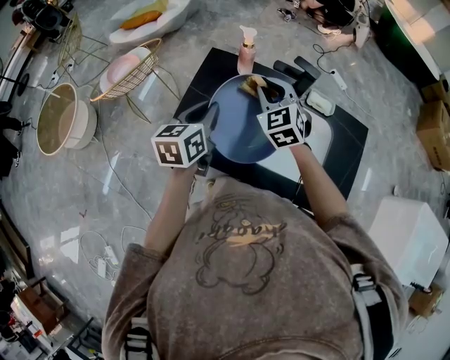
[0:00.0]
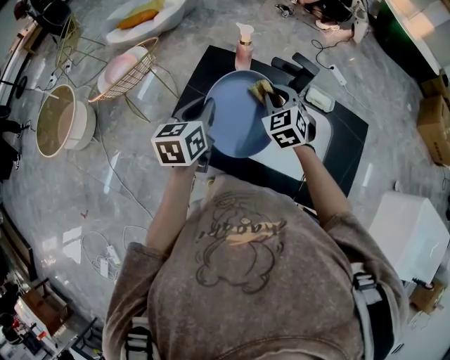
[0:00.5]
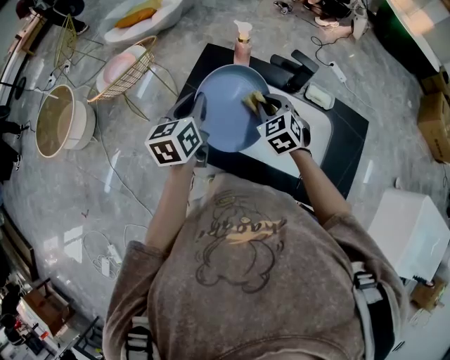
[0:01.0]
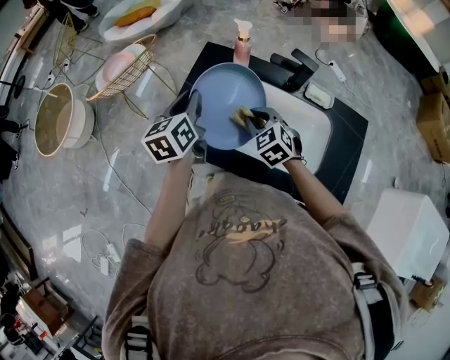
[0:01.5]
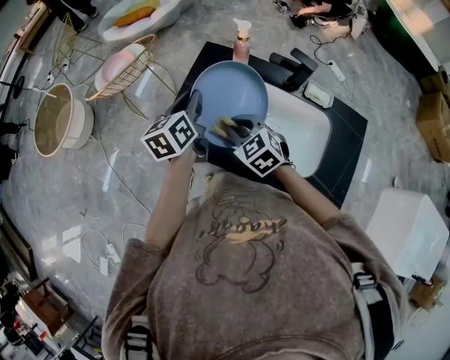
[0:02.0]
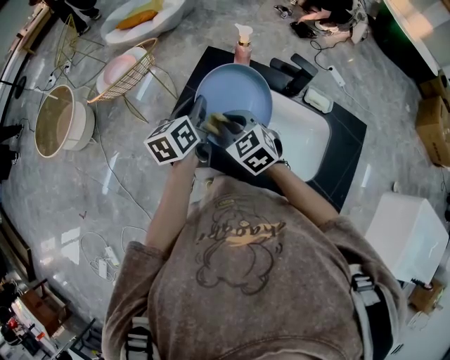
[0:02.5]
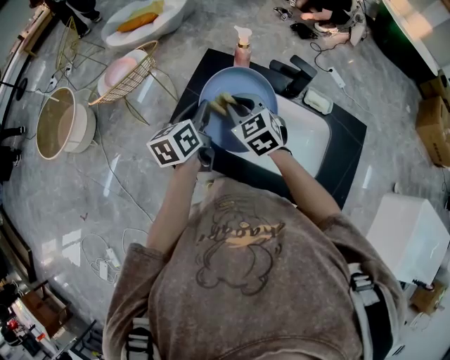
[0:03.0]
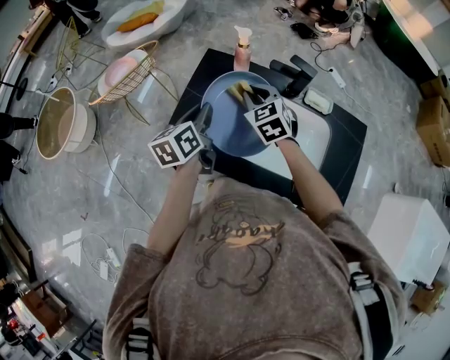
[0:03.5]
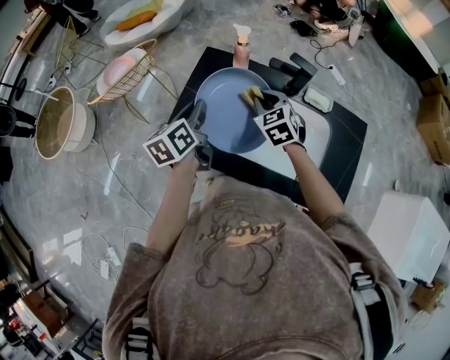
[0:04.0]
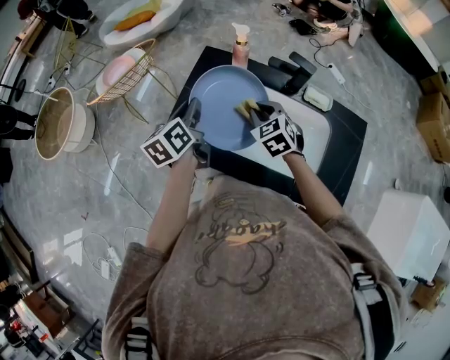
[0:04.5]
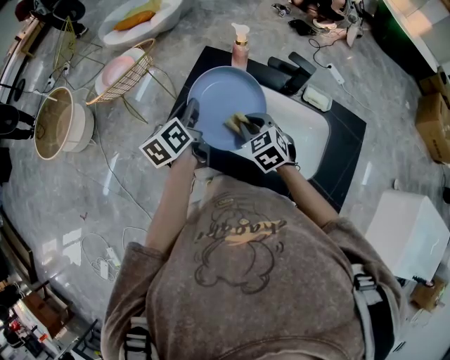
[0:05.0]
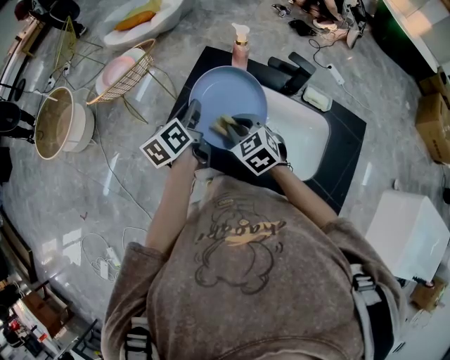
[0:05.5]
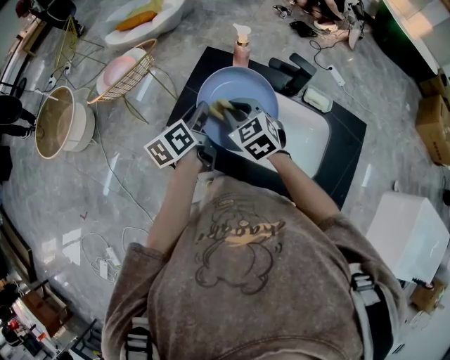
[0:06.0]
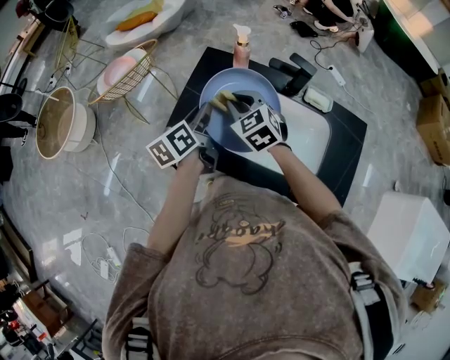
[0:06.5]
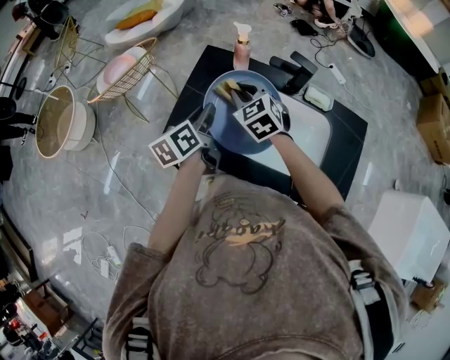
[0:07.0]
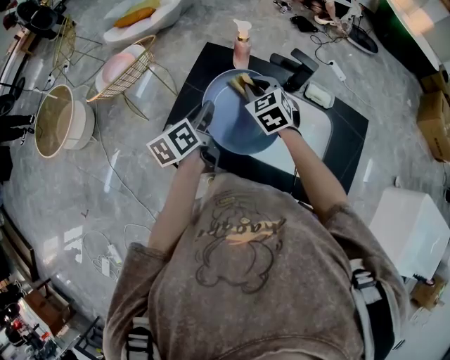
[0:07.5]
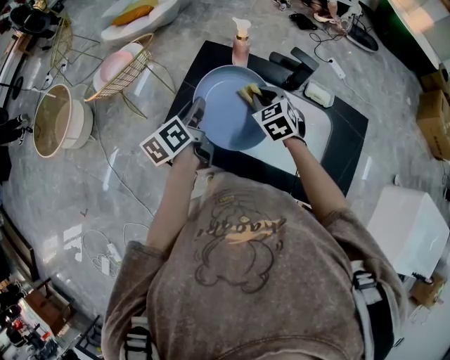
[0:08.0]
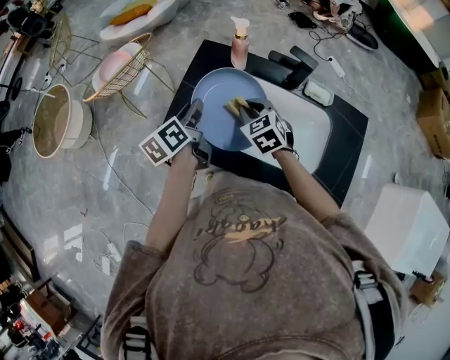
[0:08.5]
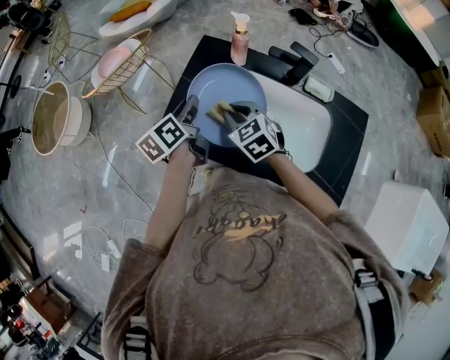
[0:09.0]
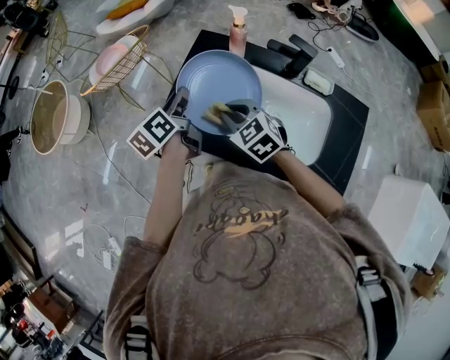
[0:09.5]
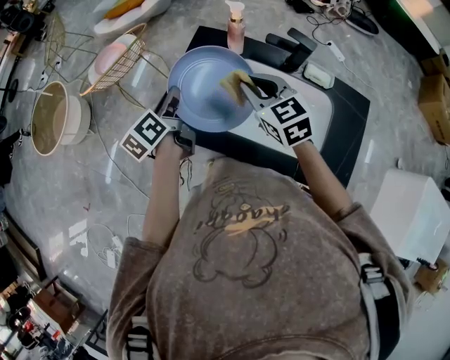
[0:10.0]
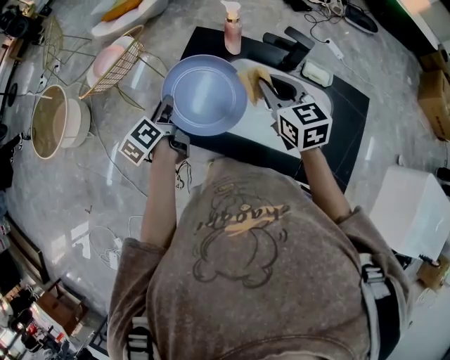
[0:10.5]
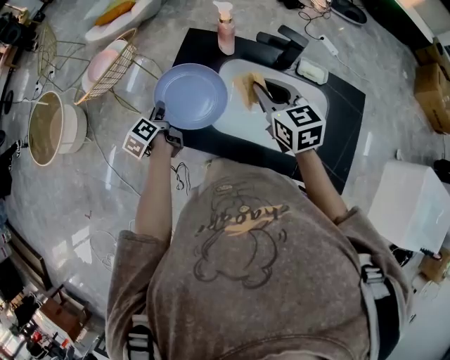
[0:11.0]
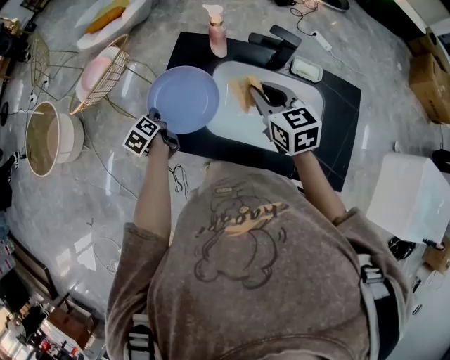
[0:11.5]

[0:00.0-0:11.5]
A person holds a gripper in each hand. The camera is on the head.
0:00.0 to 0:02.0: The left gripper moves some 5 cm, while the right gripper is displaced backward, downward and to the left by roughly 15 cm, and swivels approximately 30 degrees.
0:02.0 to 0:04.0: The right gripper shifts about 15 cm to the right and forward.
0:04.0 to 0:06.0: The right gripper is displaced to the left by roughly 10 cm.
0:06.0 to 0:07.5: The right gripper is displaced forward and to the right by about 10 cm.
0:07.5 to 0:09.5: The left gripper travels to the left by approximately 5 cm, while the right gripper shifts roughly 15 cm backward and to the left.
0:09.5 to 0:11.5: The right gripper shifts approximately 15 cm to the right and upward, and swivels roughly 30 degrees. Meanwhile the left gripper goes roughly 20 cm downward and to the left, and swivels roughly 20 degrees.

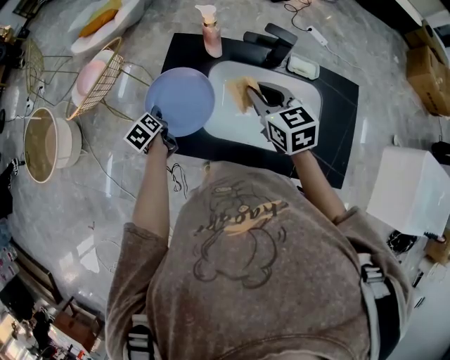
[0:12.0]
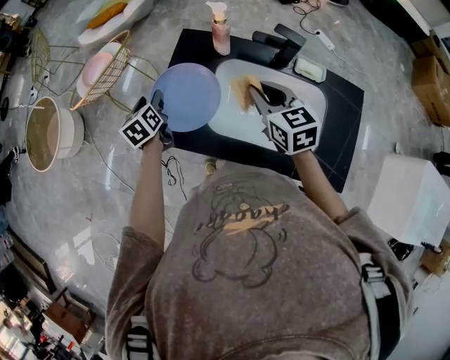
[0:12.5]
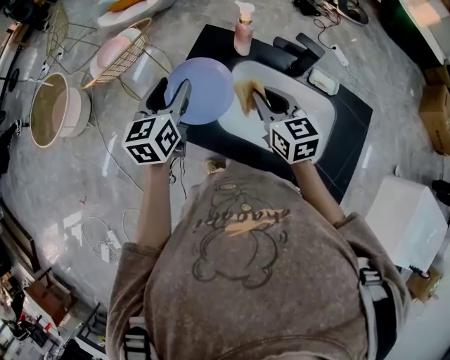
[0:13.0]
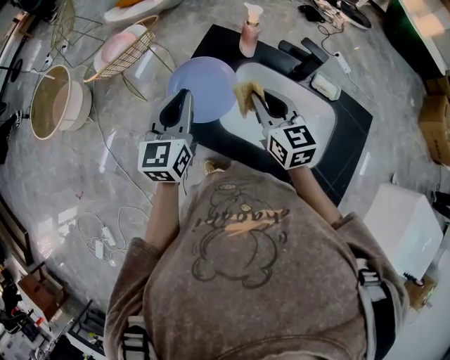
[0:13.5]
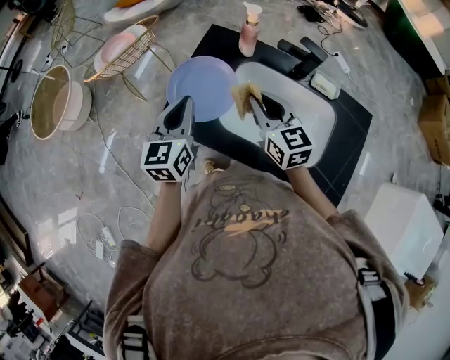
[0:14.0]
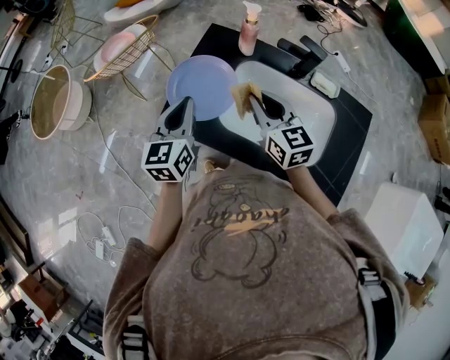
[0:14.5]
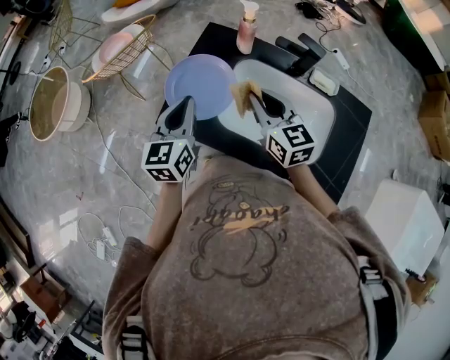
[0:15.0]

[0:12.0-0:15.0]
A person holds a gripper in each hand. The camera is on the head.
0:12.0 to 0:13.5: The right gripper is displaced to the left by about 5 cm. Meanwhile the left gripper moves upward and backward, some 25 cm, tilts its fingers roughly 30 degrees upward, and closes.
0:13.5 to 0:15.0: The grippers move only a little.

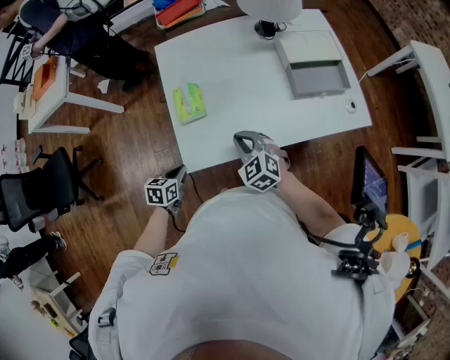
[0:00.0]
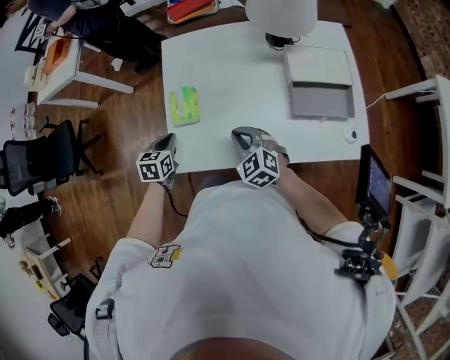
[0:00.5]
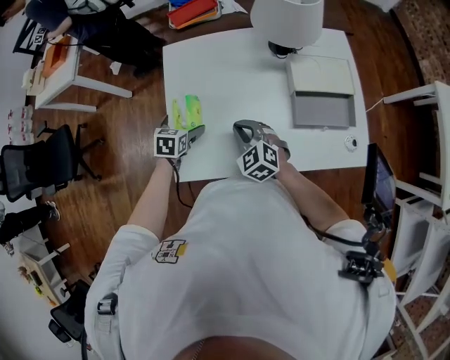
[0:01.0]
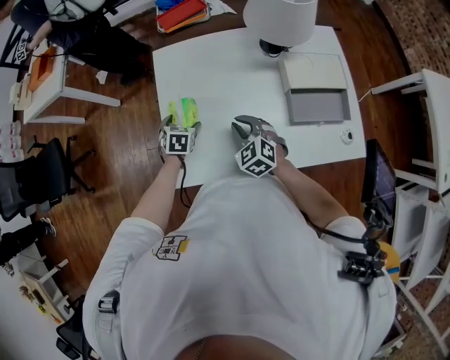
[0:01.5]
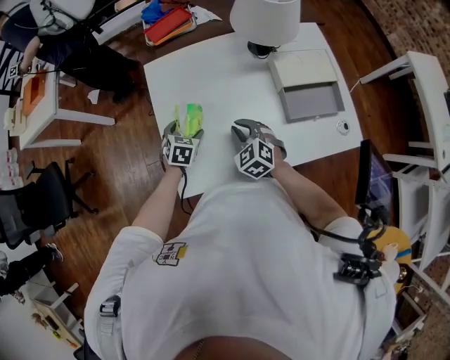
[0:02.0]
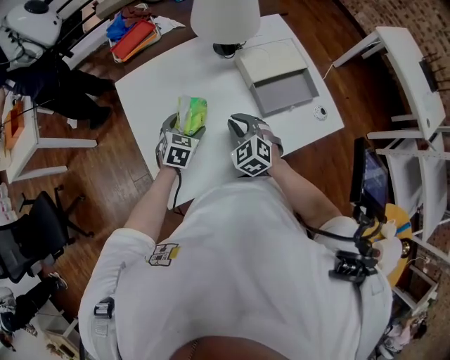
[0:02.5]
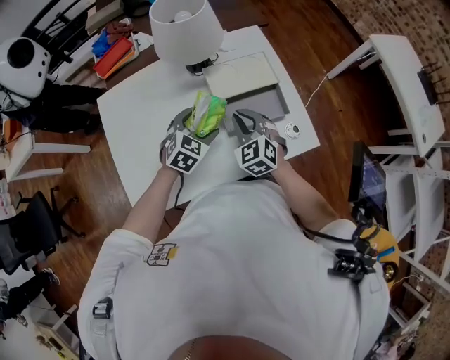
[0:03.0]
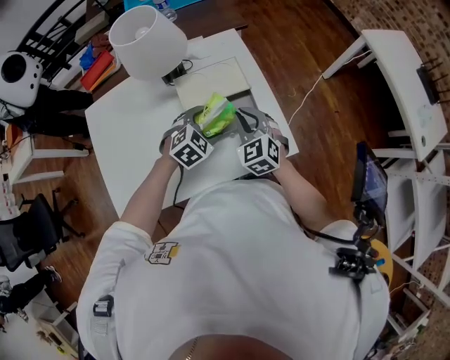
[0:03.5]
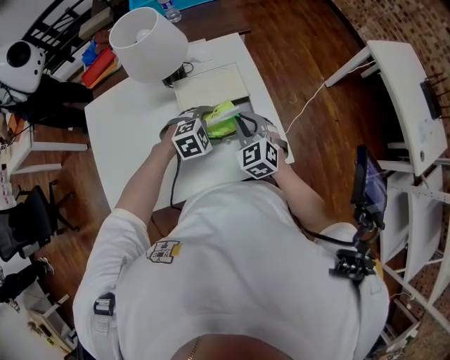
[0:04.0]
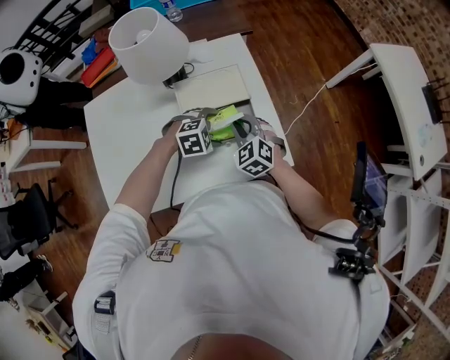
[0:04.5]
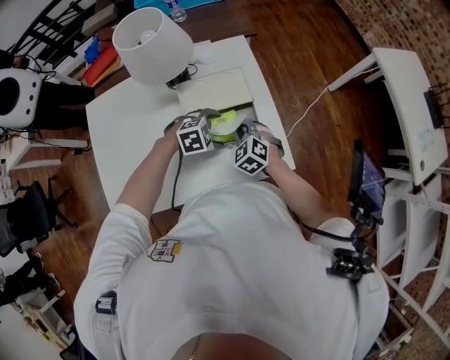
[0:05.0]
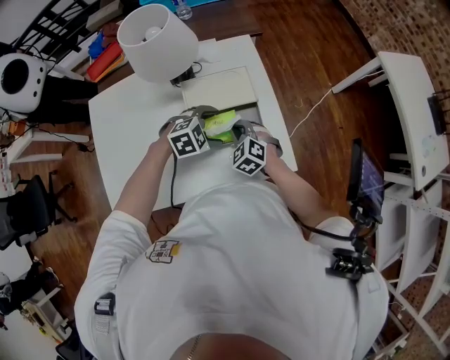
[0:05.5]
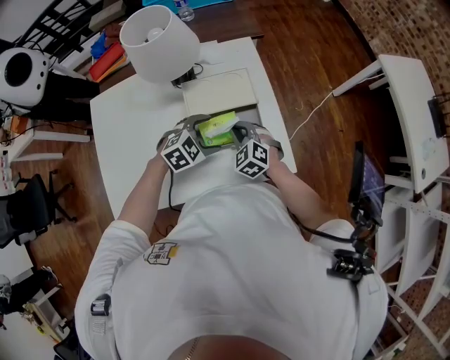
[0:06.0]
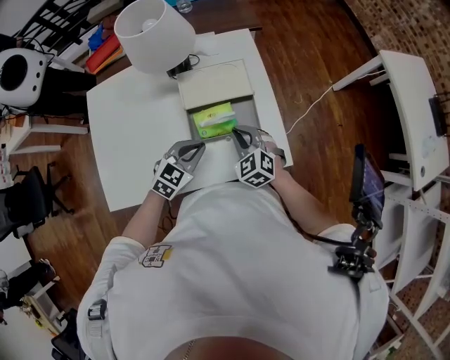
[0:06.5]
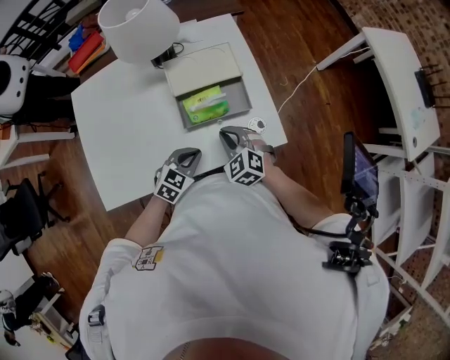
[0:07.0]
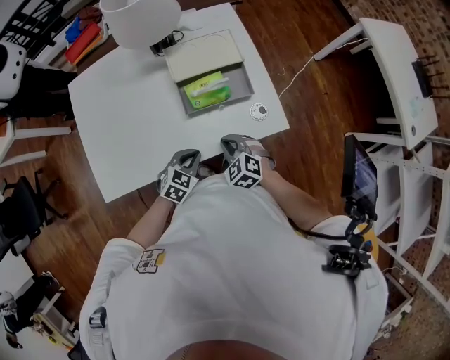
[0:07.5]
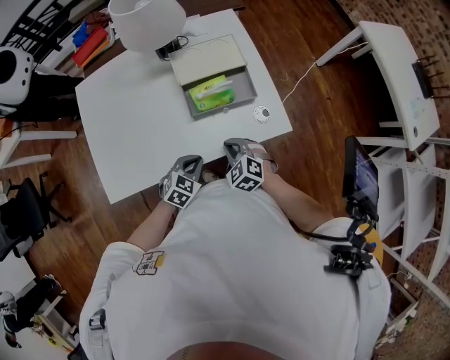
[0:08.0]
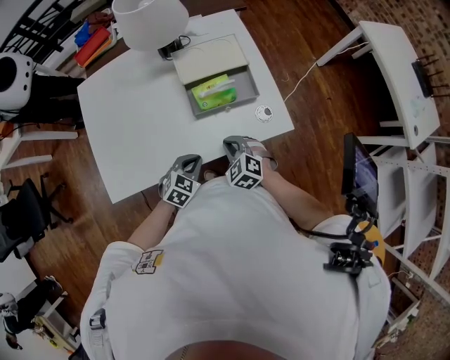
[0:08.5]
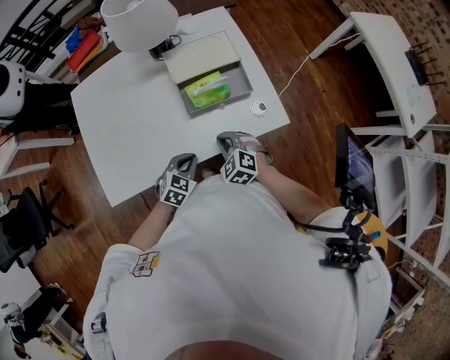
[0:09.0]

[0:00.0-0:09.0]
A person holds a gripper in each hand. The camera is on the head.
0:00.0 to 0:02.0: The left gripper shifts about 25 cm forward and to the right, changes its angle by roughly 30 degrees, and opens up. Meanwhile the right gripper shifts about 15 cm forward and to the right.
0:02.0 to 0:04.5: The right gripper moves some 35 cm. The left gripper moves roughly 50 cm, and rotates around the line of its fingers by about 60 degrees, clockwise from behind.
0:04.5 to 0:07.0: The two grippers go roughly 15 cm backward. The left gripper turns by roughly 50 degrees, and closes up.
0:07.0 to 0:09.0: The grippers both shift backward by about 5 cm.

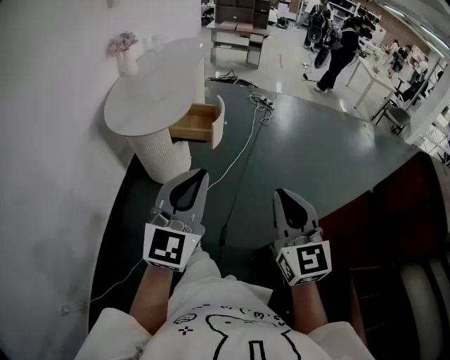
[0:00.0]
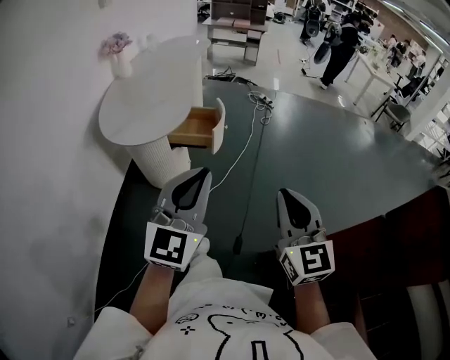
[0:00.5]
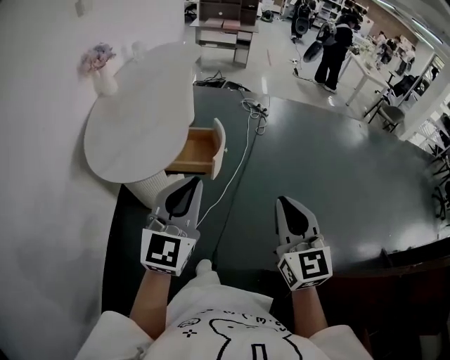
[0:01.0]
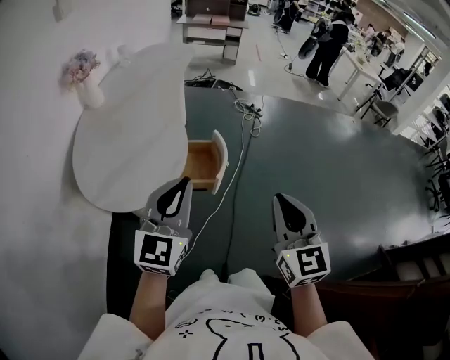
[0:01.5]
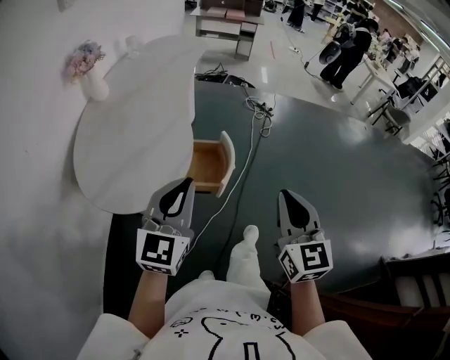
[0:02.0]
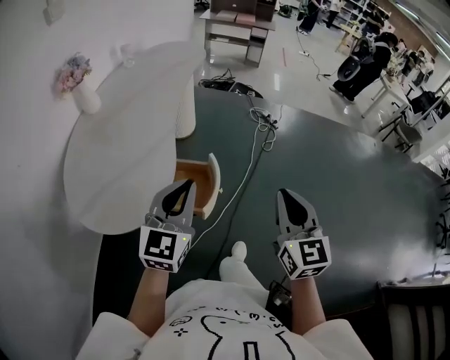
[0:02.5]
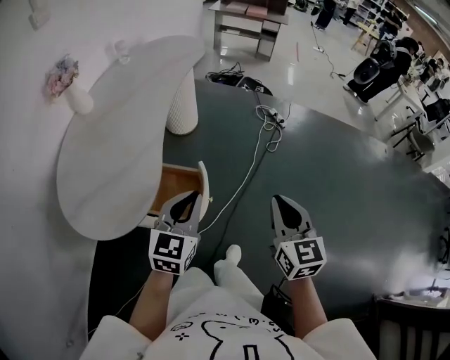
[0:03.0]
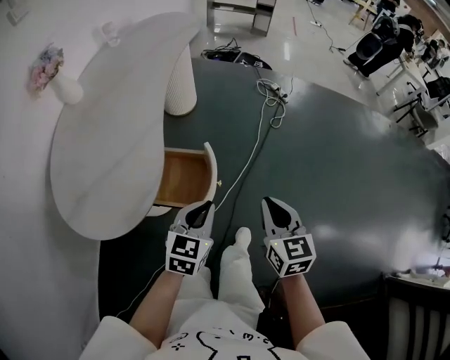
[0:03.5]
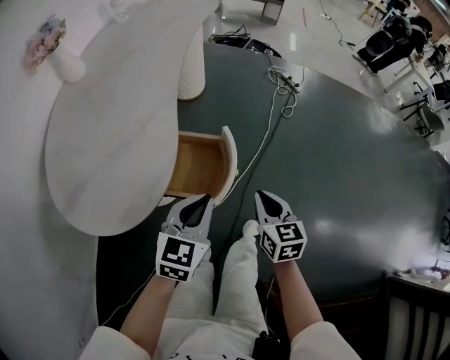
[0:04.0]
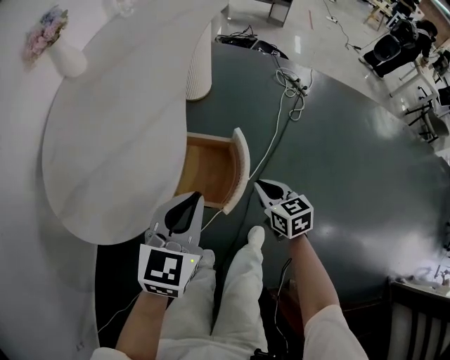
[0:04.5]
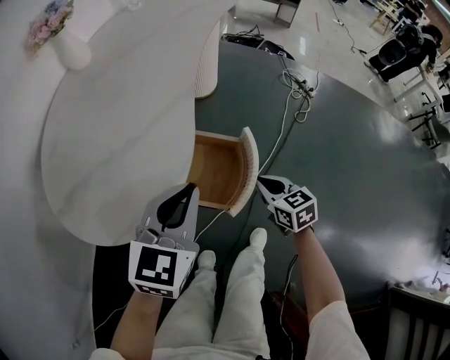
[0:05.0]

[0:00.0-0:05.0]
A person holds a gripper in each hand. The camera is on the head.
0:00.0 to 0:02.5: The pair of grippers is taken forward, roughly 50 cm.
0:02.5 to 0:05.0: The right gripper is displaced downward and forward by approximately 40 cm, and turns by some 40 degrees. The left gripper heads downward, to the left and forward, covering some 20 cm.
